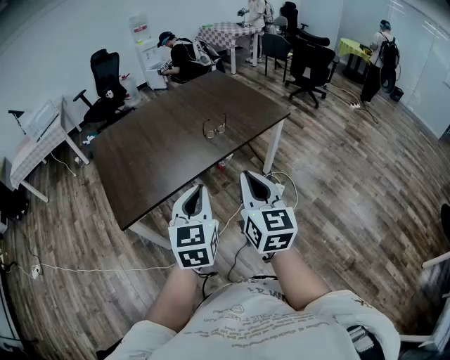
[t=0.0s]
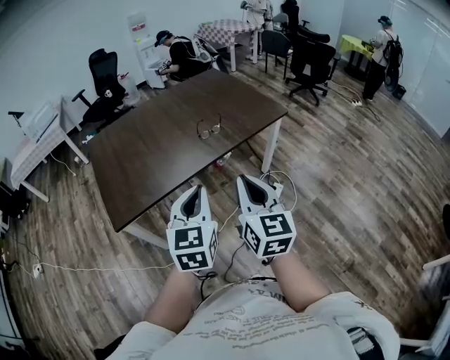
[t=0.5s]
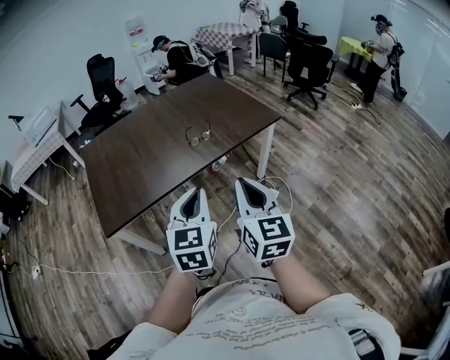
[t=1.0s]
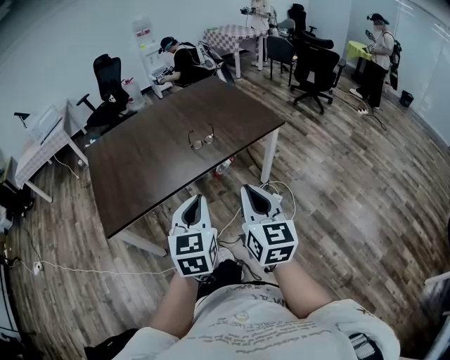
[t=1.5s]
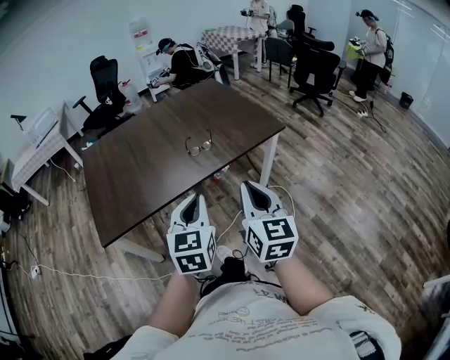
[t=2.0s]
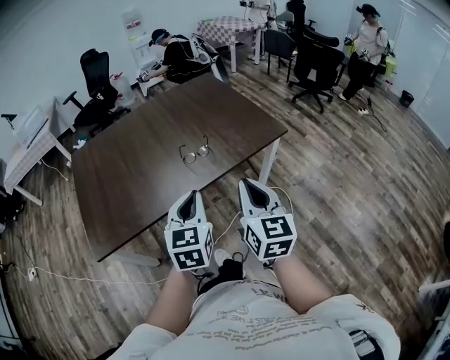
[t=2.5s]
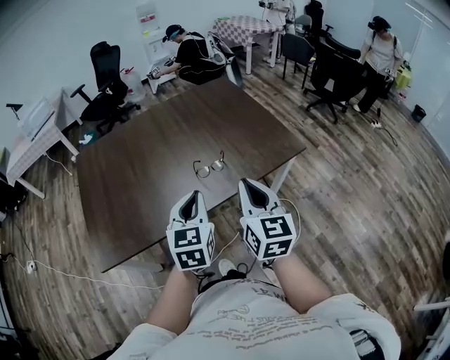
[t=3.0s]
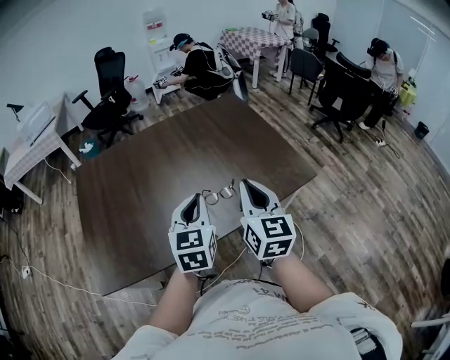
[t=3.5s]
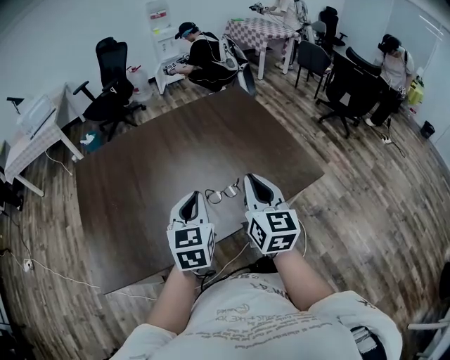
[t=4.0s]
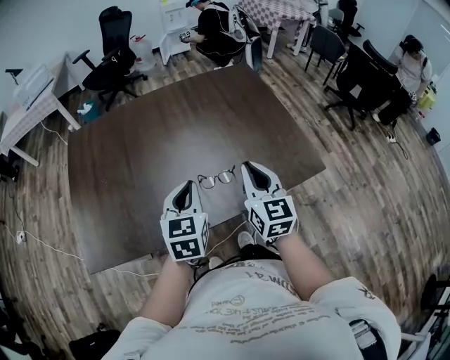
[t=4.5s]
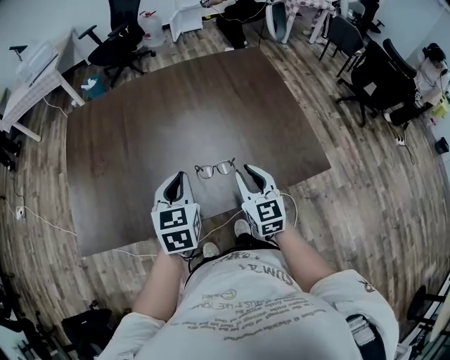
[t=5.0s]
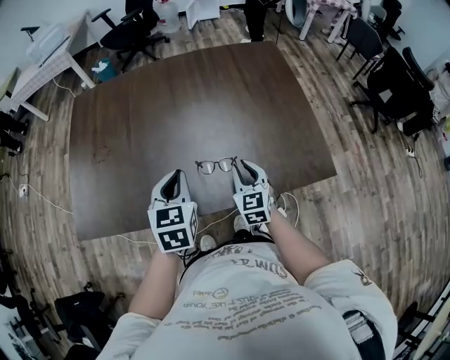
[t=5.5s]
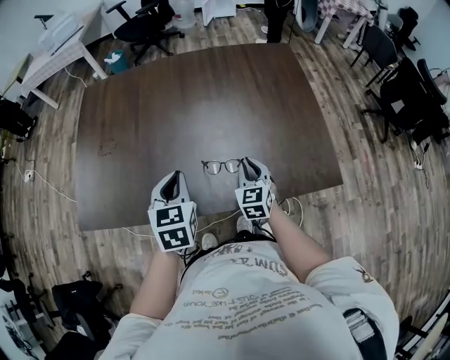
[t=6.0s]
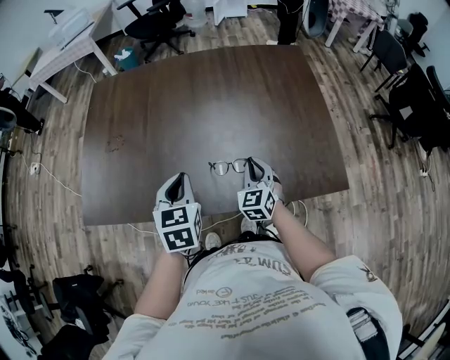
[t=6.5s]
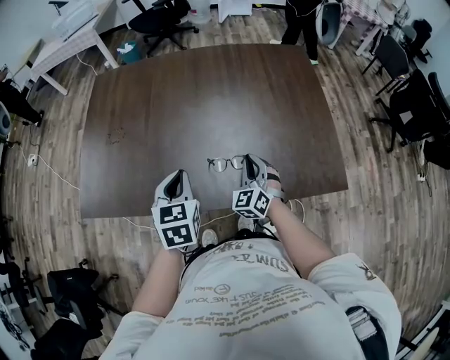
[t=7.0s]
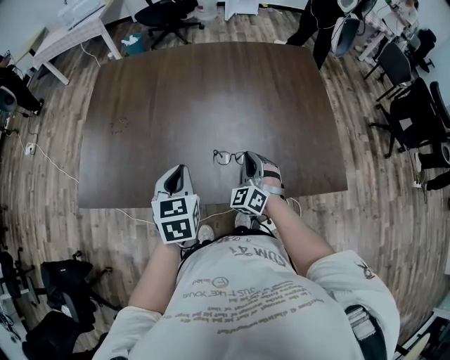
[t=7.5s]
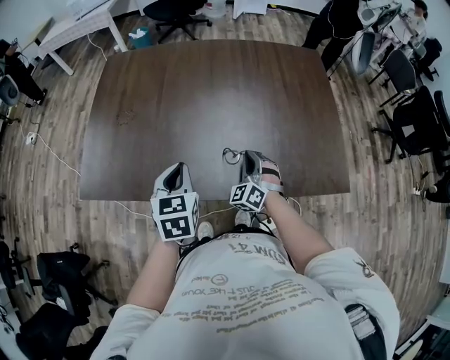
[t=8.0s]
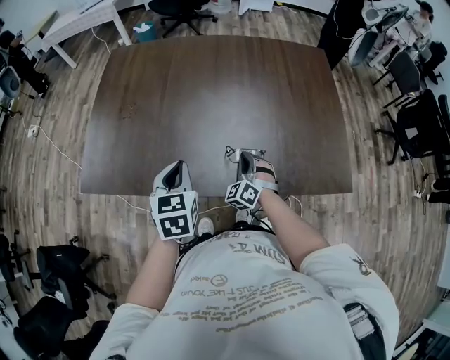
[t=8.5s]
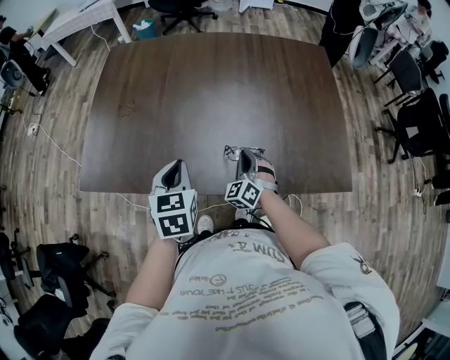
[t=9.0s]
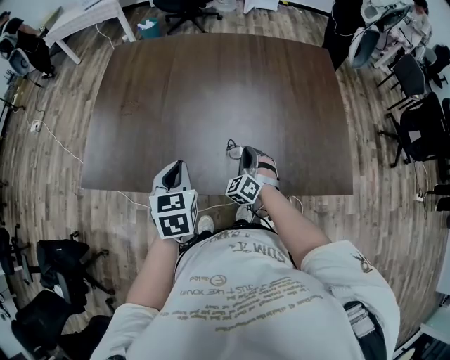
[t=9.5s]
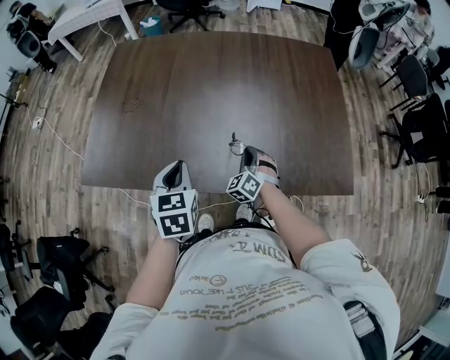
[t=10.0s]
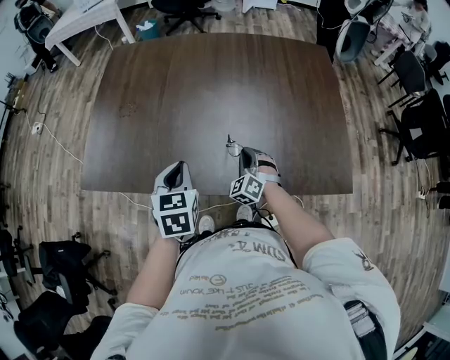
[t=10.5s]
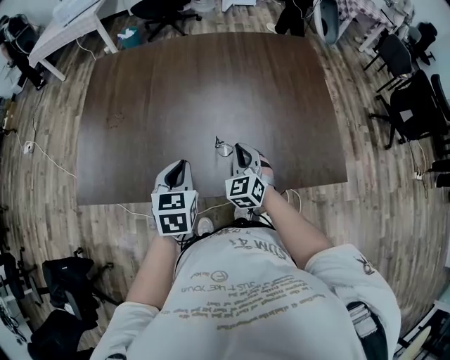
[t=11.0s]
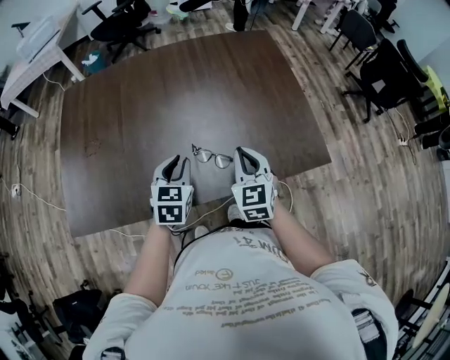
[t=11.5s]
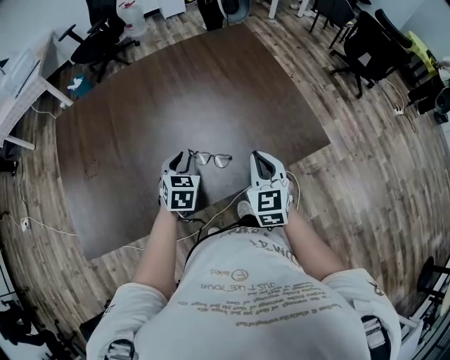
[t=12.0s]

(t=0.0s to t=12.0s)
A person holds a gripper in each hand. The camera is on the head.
t=0.0s - t=2.0s: Both grippers move to the right and forward, some 15 cm.
t=2.0s - t=4.0s: The grippers both shift forward by some 35 cm.
t=4.0s - t=6.0s: The right gripper travels downward and forward by approximately 25 cm, and swivels roughly 40 degrees. The left gripper goes about 10 cm downward, and turns by approximately 30 degrees.
t=6.0s - t=8.0s: The grippers both shift to the left by some 5 cm. The right gripper twists approximately 40 degrees counterclockwise, seen from behind.
t=8.0s - t=10.0s: The right gripper goes roughly 5 cm downward.
t=10.0s - t=12.0s: The right gripper travels upward and to the right by about 20 cm, and rotates around the line of its fingers by roughly 50 degrees, clockwise from behind; the left gripper travels forward, to the right and downward by approximately 20 cm, rotates roughly 40 degrees, and opens.

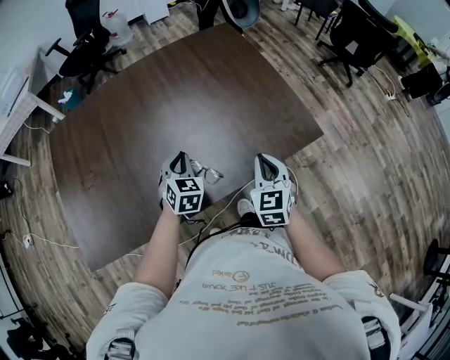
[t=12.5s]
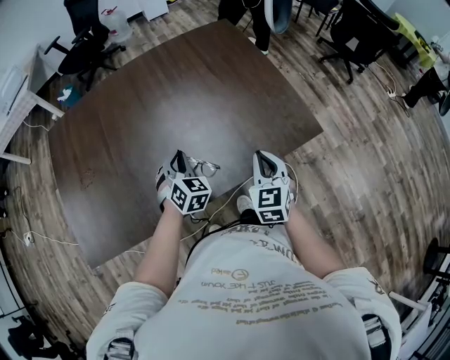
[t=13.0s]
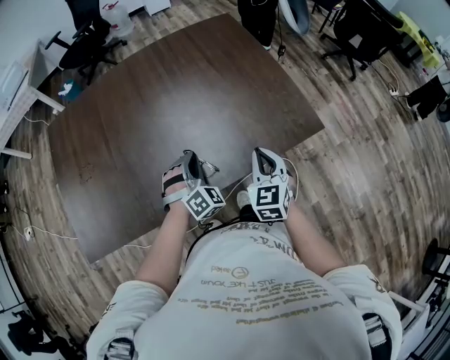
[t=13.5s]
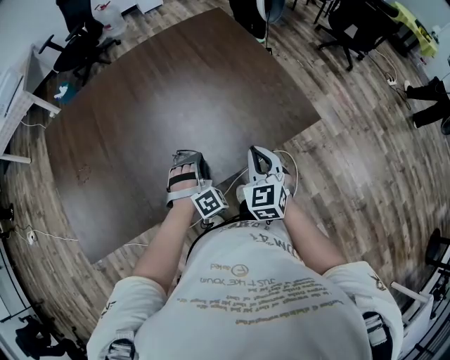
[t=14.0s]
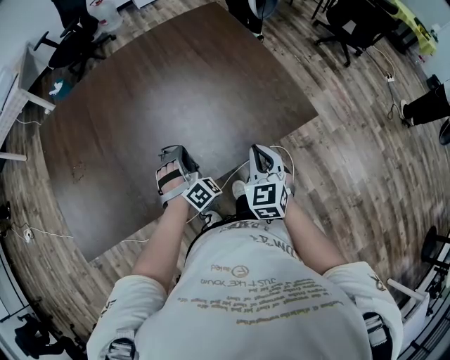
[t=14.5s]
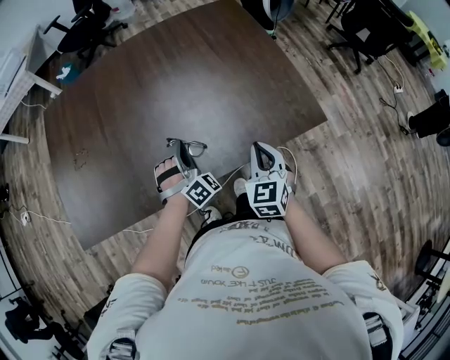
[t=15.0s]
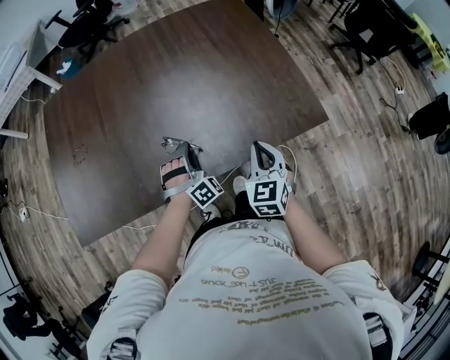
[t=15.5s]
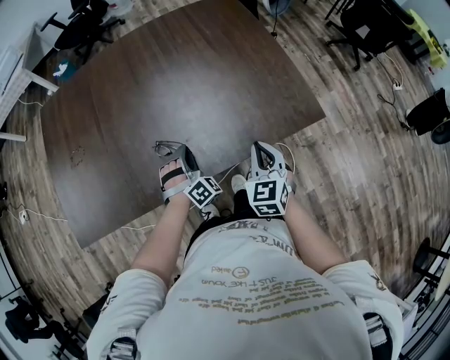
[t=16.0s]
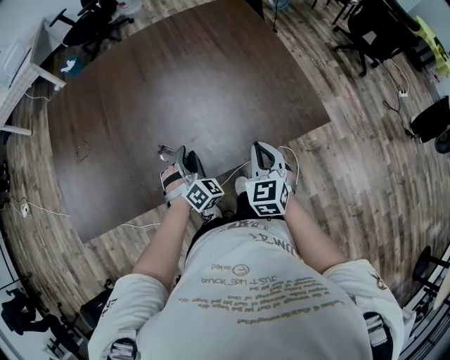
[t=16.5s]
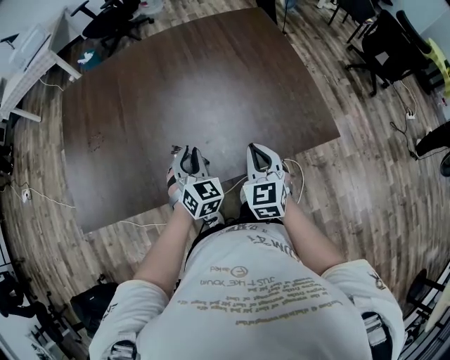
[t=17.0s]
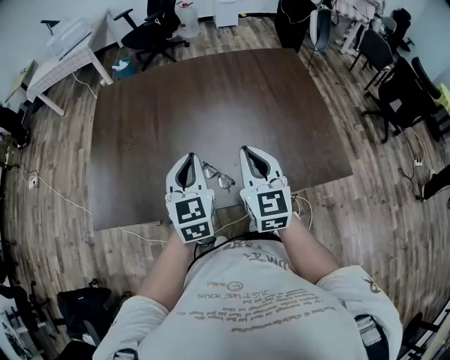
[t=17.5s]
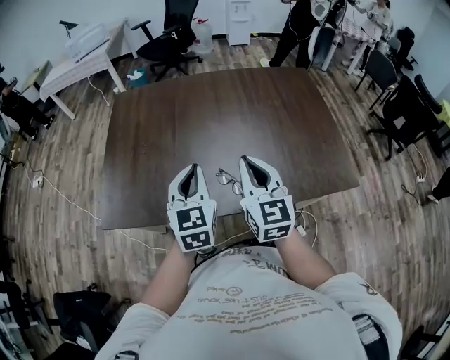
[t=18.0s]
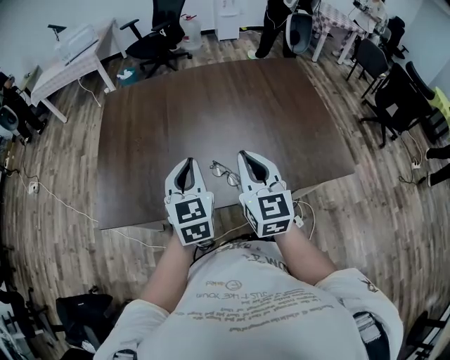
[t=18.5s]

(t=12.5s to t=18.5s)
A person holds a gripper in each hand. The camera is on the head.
t=12.5s - t=14.5s: The left gripper rotates around the line of its fingers by about 40 degrees, clockwise from behind.
t=14.5s - t=16.5s: The left gripper opens up.
t=16.5s - t=18.5s: The left gripper travels upward and to the left by approximately 30 cm, rotates around the line of its fingers by approximately 50 degrees, counterclockwise from behind, and closes up, while the right gripper moves to the left and upward, roughly 30 cm, and changes its angle by about 30 degrees.

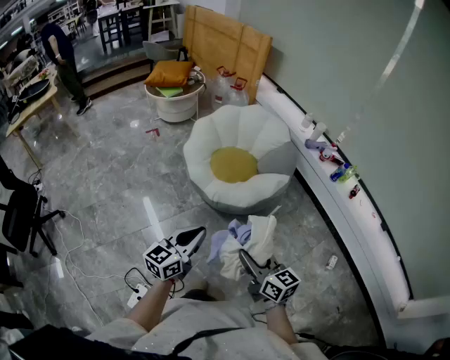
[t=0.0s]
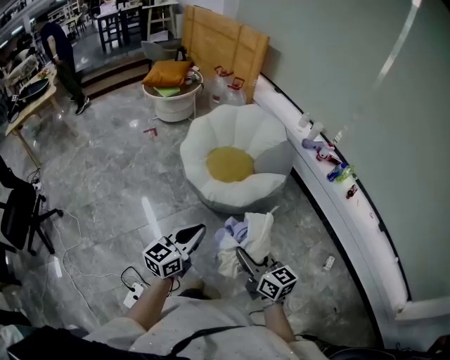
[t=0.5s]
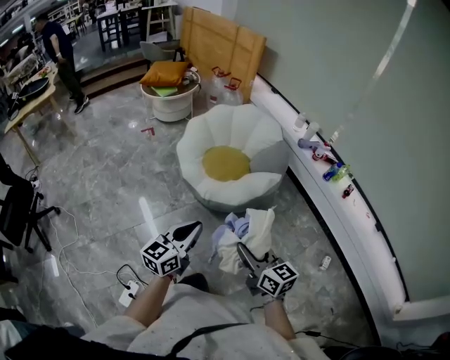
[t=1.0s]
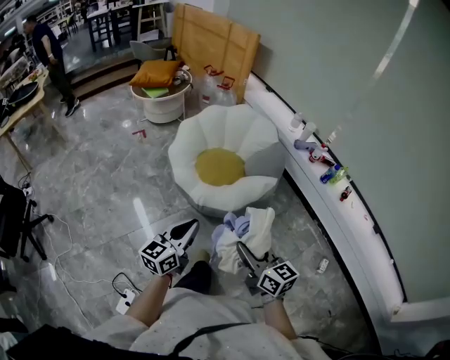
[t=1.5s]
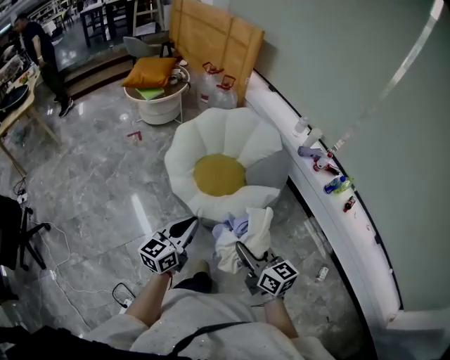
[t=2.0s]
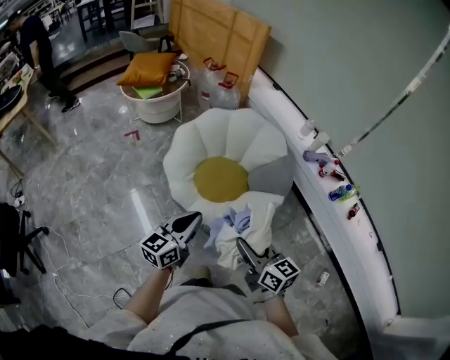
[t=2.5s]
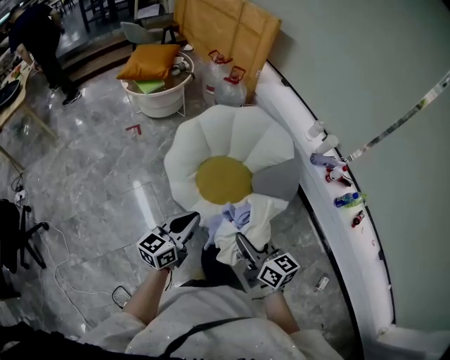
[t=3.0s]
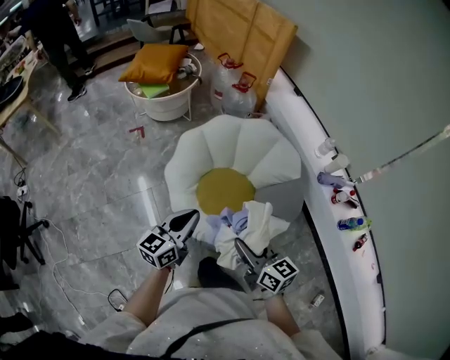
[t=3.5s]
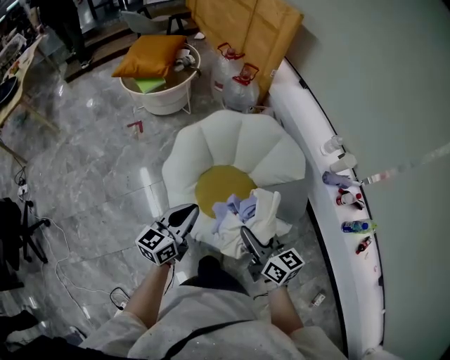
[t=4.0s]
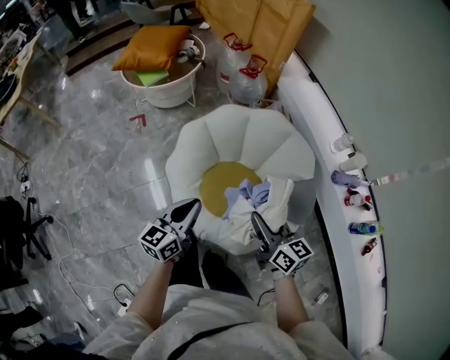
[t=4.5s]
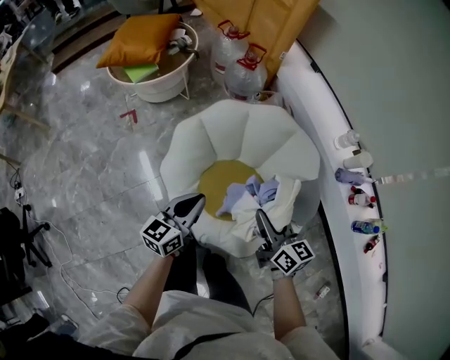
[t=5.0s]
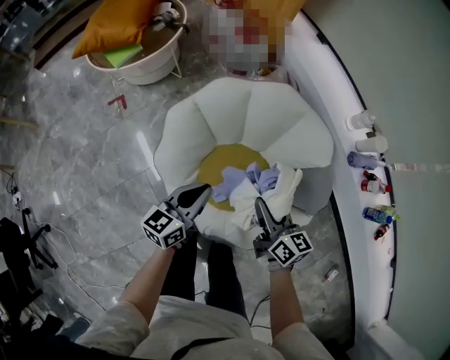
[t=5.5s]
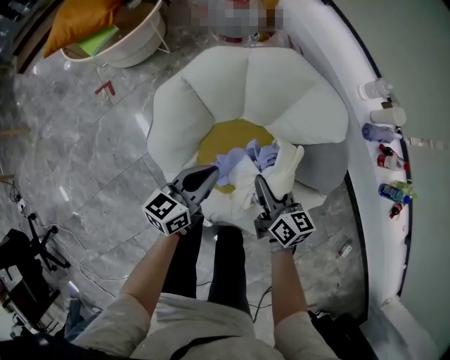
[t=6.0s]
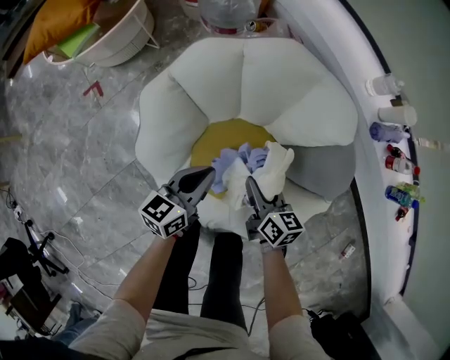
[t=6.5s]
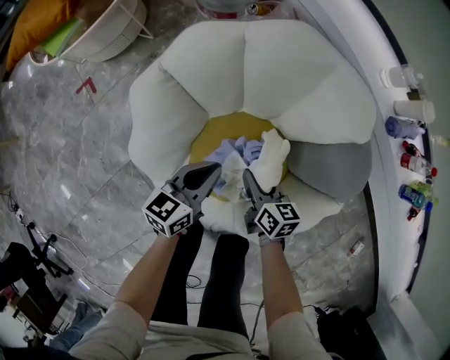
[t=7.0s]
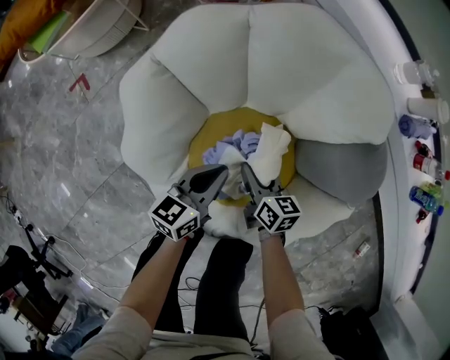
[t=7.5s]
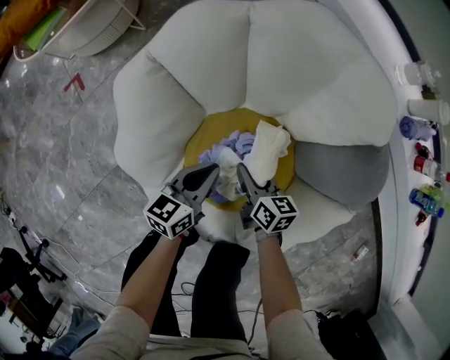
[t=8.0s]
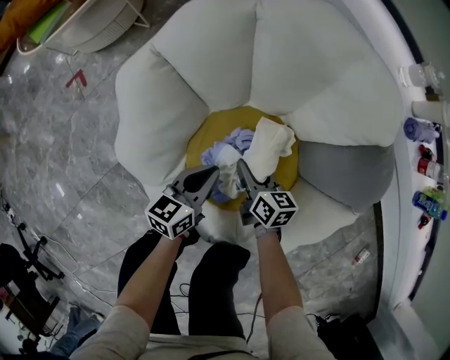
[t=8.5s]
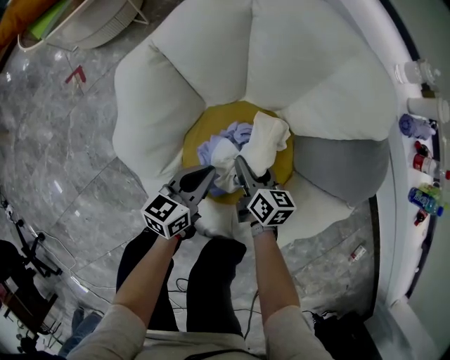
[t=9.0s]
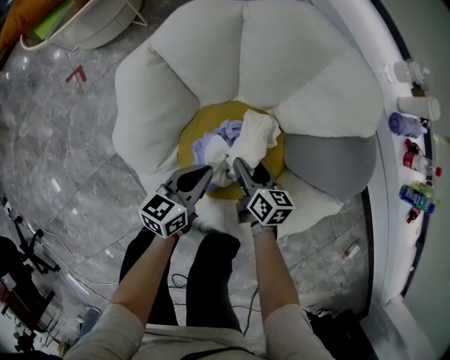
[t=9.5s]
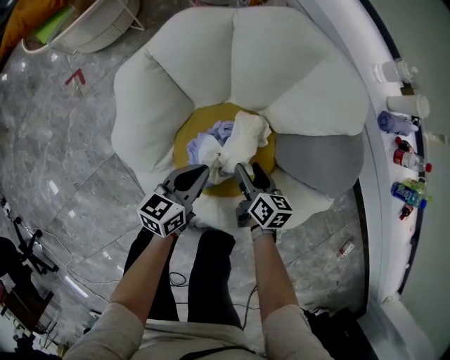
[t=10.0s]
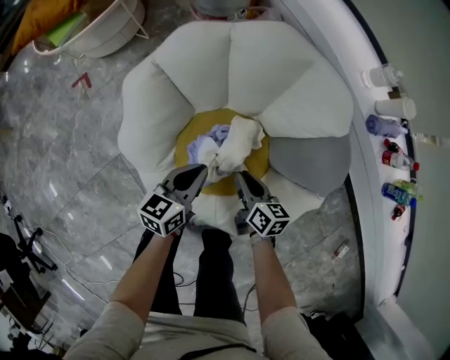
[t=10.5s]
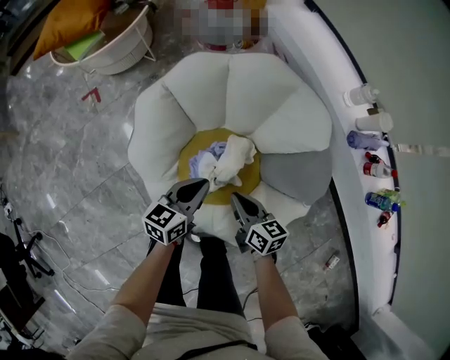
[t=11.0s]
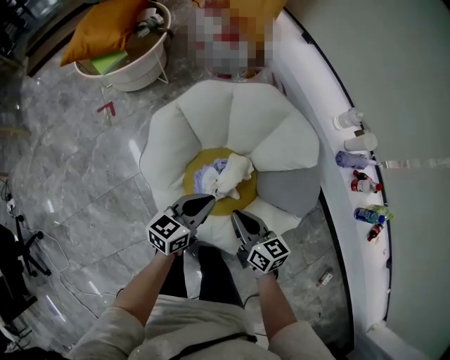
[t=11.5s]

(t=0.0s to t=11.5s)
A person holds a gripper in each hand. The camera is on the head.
t=0.0s - t=2.0s: The grippers both shift forward by some 25 cm.
t=2.0s - t=4.0s: Both grippers move forward, approximately 40 cm.
t=4.0s - t=6.0s: The two grippers go approximately 35 cm downward and forward. The right gripper changes its angle by about 20 degrees. Meanwhile the left gripper turns by about 20 degrees.
t=6.0s - t=7.5s: Both grippers travel together downward, about 25 cm.
t=7.5s - t=9.5s: The right gripper opens.
t=9.5s - t=11.5s: The grippers both shift upward by some 30 cm. The right gripper rotates roughly 20 degrees, and closes.
